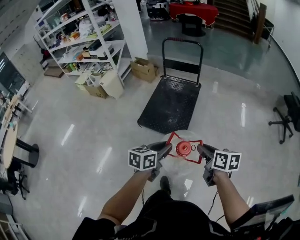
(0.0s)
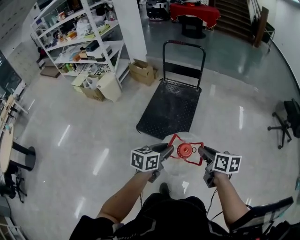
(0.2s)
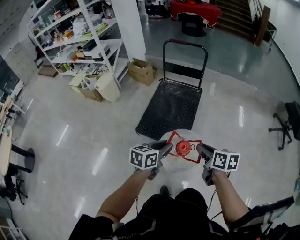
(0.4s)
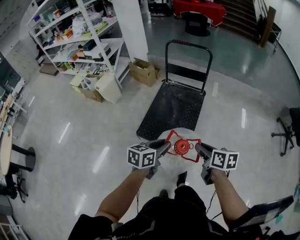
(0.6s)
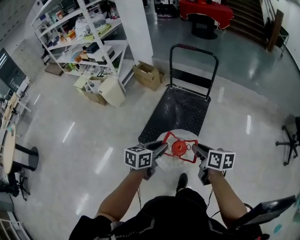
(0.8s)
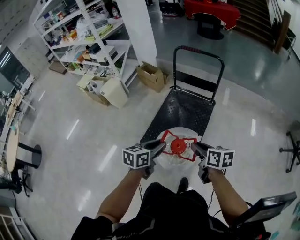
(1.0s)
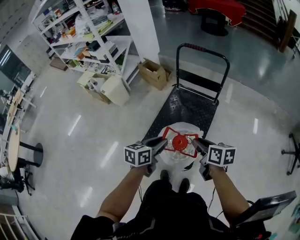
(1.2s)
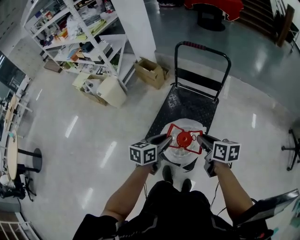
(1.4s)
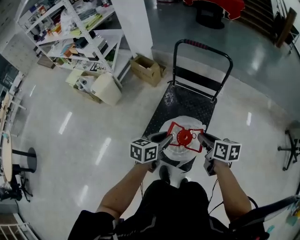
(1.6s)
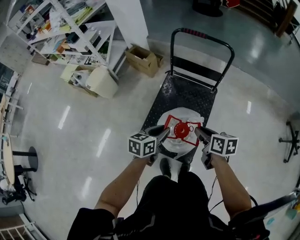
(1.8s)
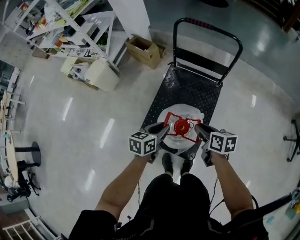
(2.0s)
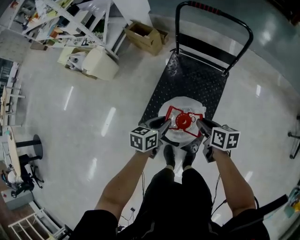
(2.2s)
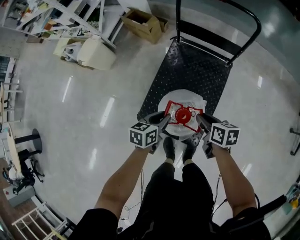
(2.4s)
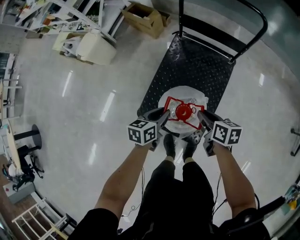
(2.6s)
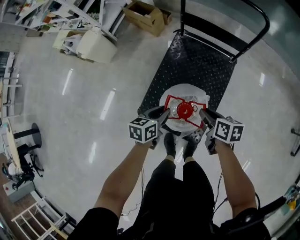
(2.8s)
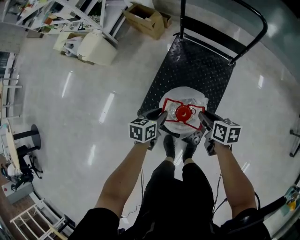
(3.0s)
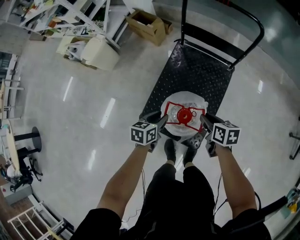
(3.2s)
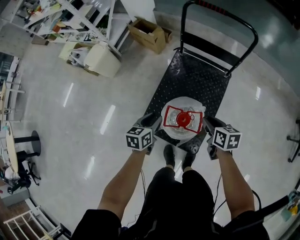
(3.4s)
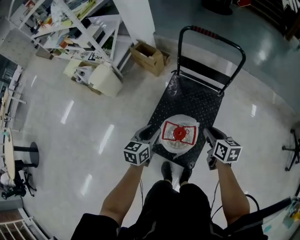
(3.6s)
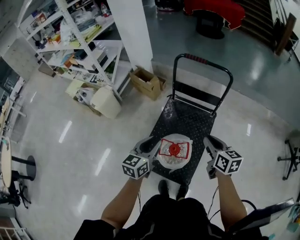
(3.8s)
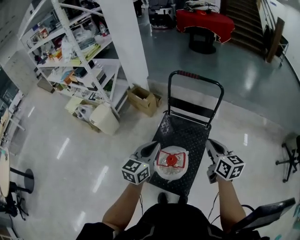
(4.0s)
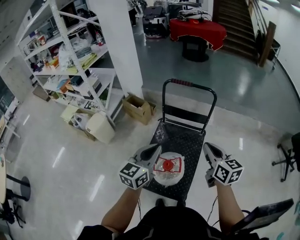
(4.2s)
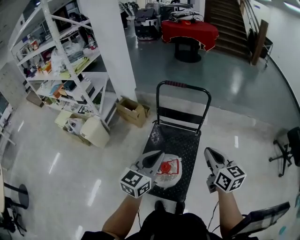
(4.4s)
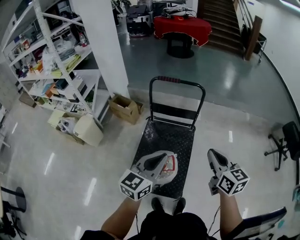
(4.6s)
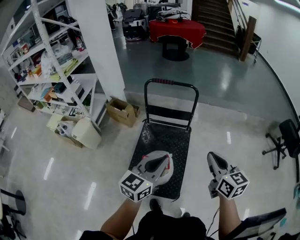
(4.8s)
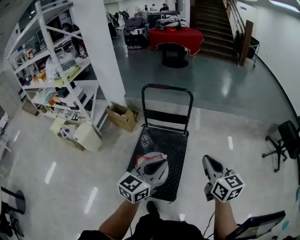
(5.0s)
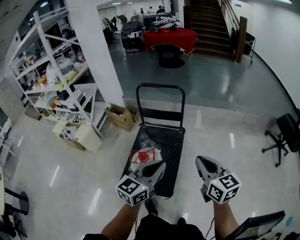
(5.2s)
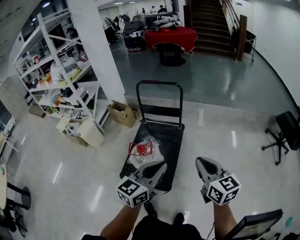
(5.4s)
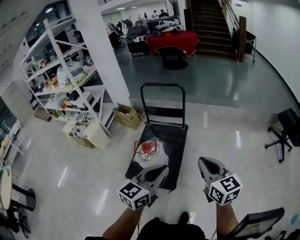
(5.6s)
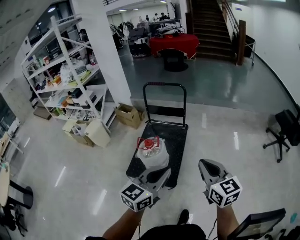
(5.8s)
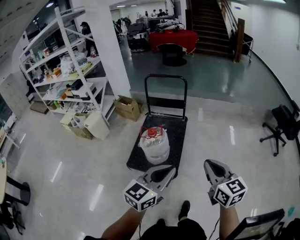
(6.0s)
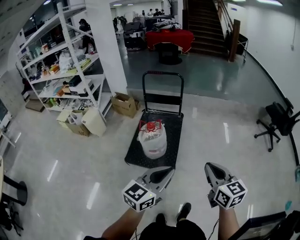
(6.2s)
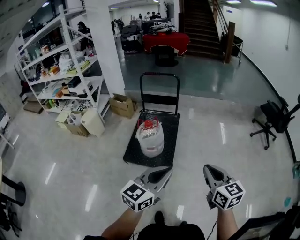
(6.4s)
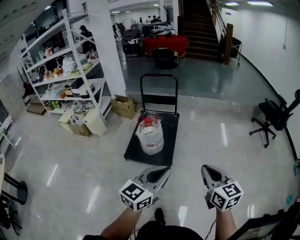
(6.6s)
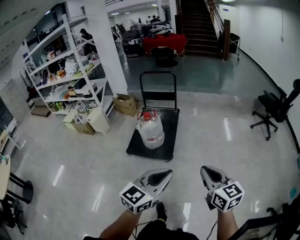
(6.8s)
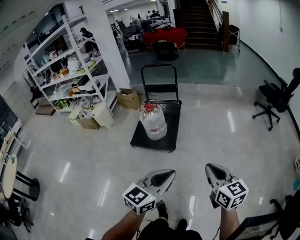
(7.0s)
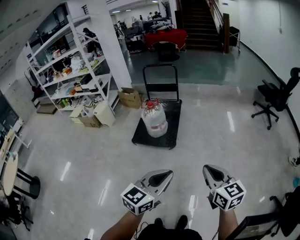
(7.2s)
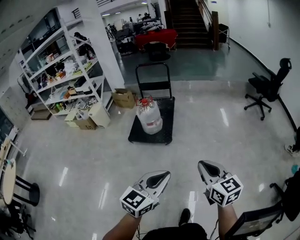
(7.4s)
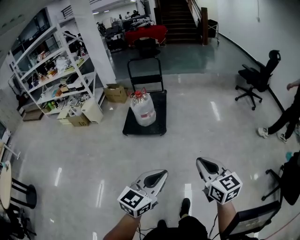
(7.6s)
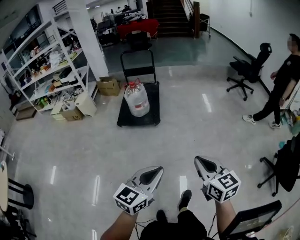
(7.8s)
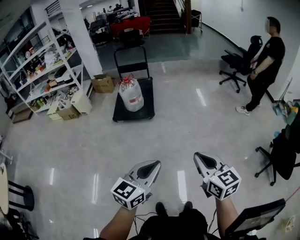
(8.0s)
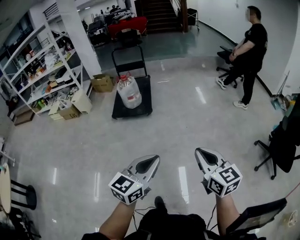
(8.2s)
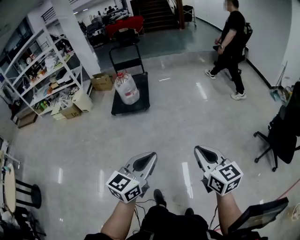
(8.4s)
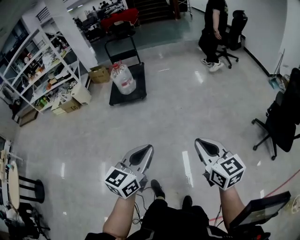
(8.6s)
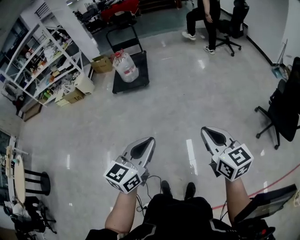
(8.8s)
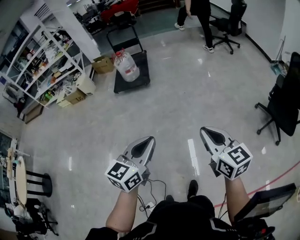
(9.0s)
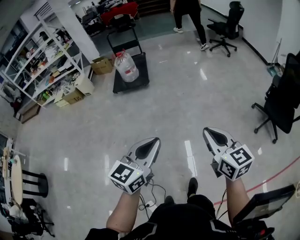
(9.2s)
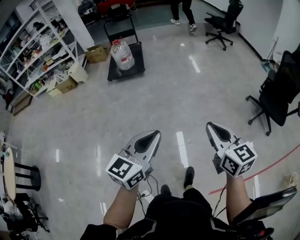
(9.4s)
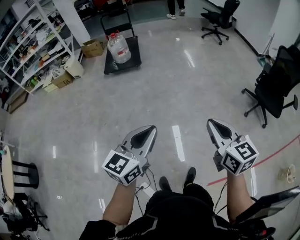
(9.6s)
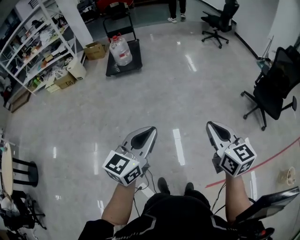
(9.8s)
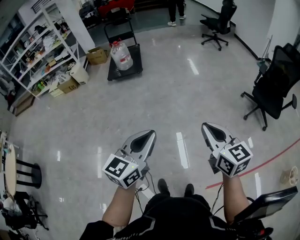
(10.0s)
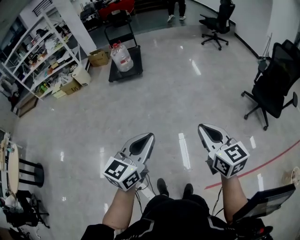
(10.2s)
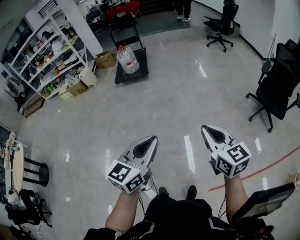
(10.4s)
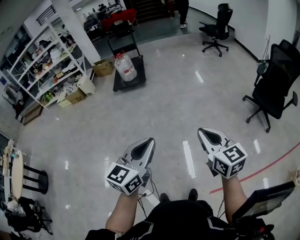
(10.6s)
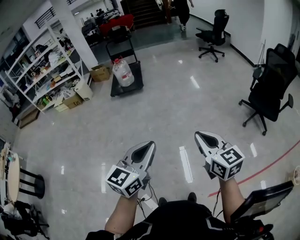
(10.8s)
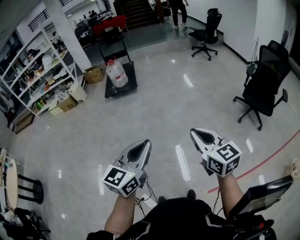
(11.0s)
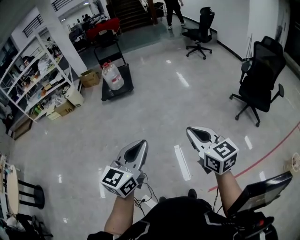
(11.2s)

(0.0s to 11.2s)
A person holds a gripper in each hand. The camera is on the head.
0.0s - 1.6s: The two grippers travel together, forward, roughly 50 cm.
1.6s - 3.2s: The left gripper goes about 20 cm downward. Meanwhile the right gripper is displaced downward and forward by about 25 cm.
3.2s - 4.8s: The grippers both shift upward by some 40 cm. The right gripper tips its fingers upward by approximately 30 degrees, and closes. Meanwhile the left gripper angles its fingers upward, by about 40 degrees, and closes up.
4.8s - 6.4s: The pair of grippers is taken backward, roughly 50 cm.
6.4s - 8.0s: Both grippers are carried backward, roughly 60 cm.
8.0s - 9.6s: Both grippers are carried backward, some 40 cm.
9.6s - 11.2s: The left gripper is displaced backward, to the right and upward by approximately 15 cm. Meanwhile the right gripper heads backward, covering approximately 10 cm.

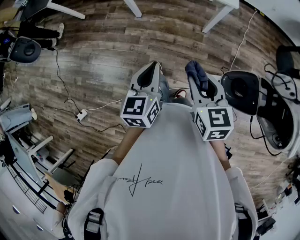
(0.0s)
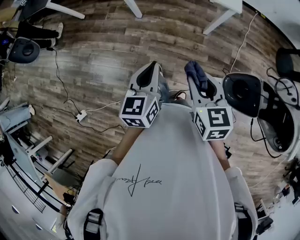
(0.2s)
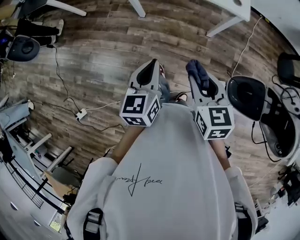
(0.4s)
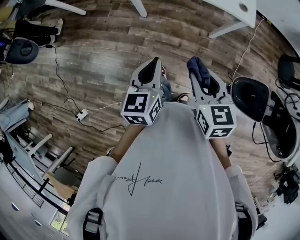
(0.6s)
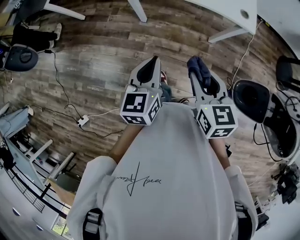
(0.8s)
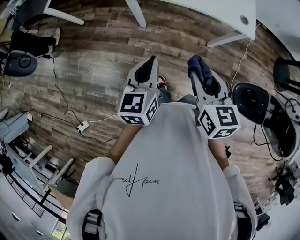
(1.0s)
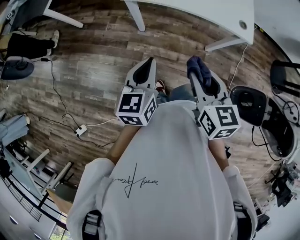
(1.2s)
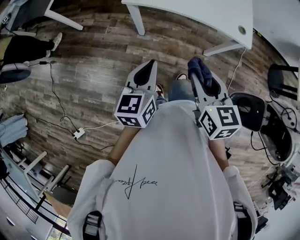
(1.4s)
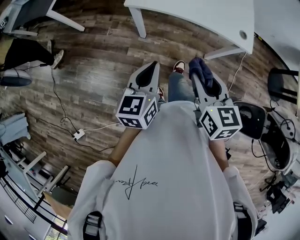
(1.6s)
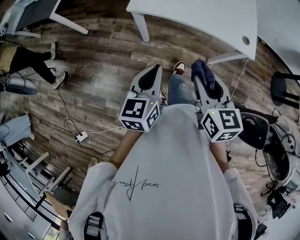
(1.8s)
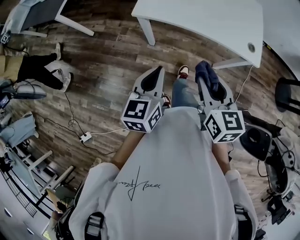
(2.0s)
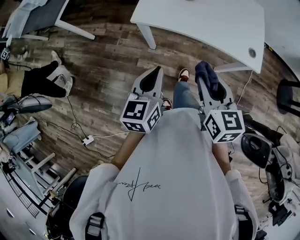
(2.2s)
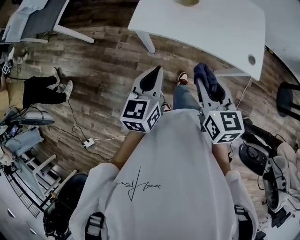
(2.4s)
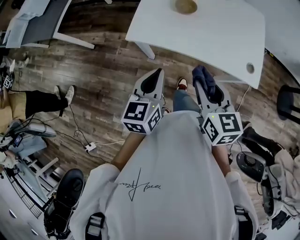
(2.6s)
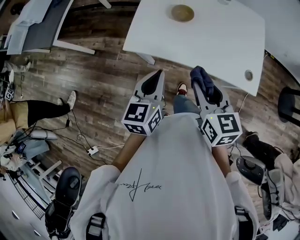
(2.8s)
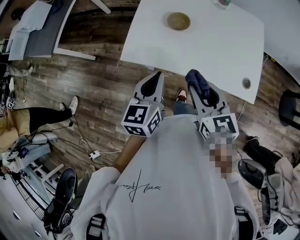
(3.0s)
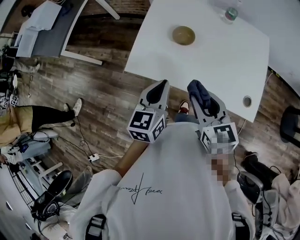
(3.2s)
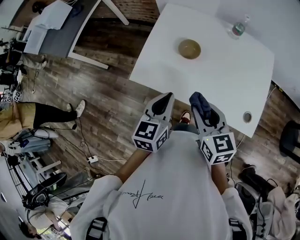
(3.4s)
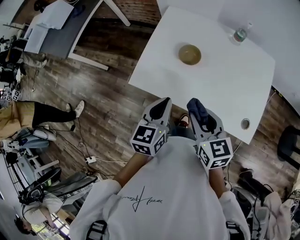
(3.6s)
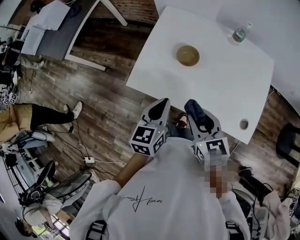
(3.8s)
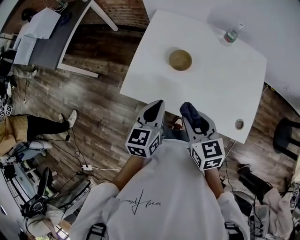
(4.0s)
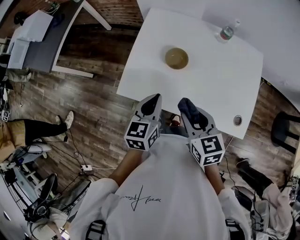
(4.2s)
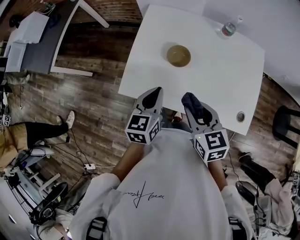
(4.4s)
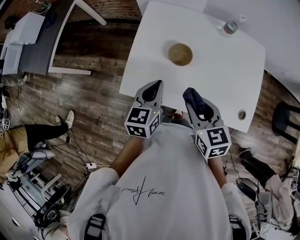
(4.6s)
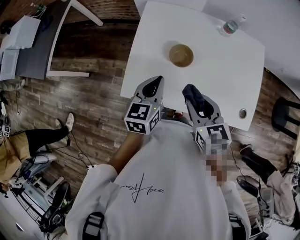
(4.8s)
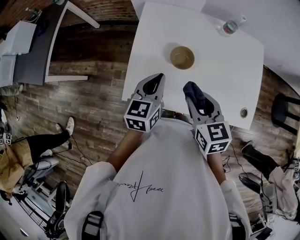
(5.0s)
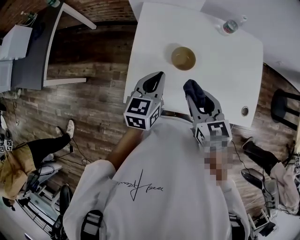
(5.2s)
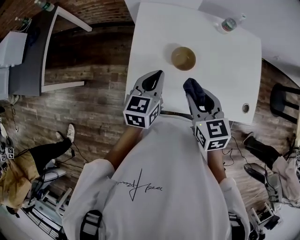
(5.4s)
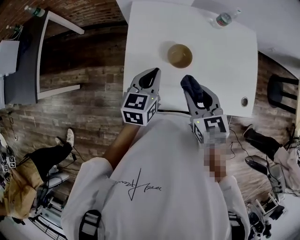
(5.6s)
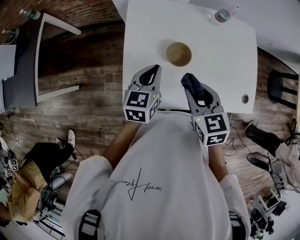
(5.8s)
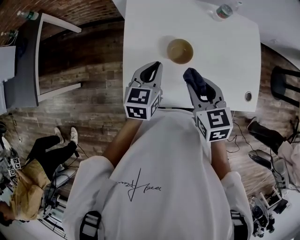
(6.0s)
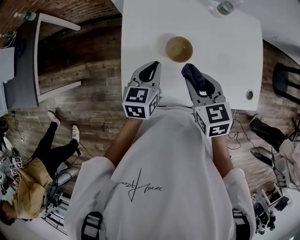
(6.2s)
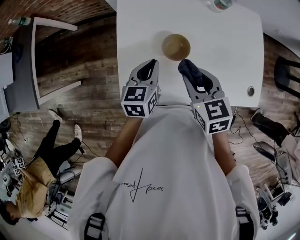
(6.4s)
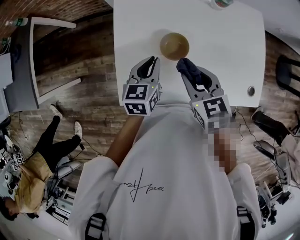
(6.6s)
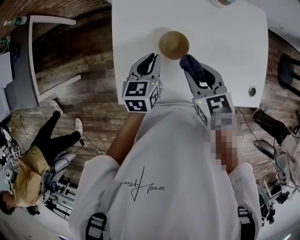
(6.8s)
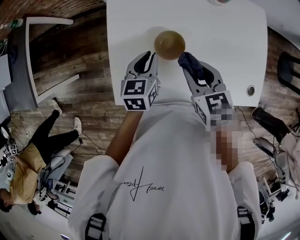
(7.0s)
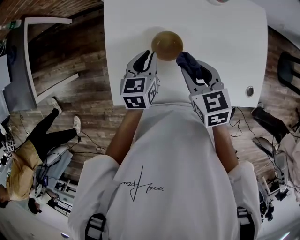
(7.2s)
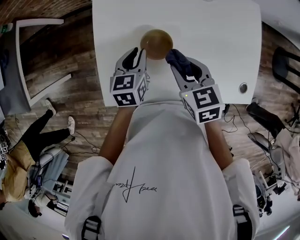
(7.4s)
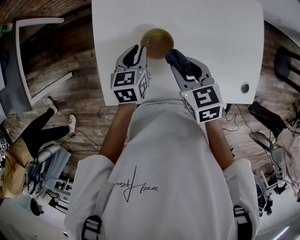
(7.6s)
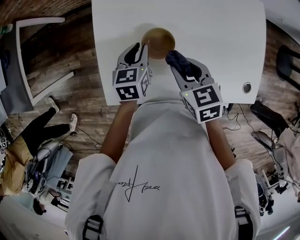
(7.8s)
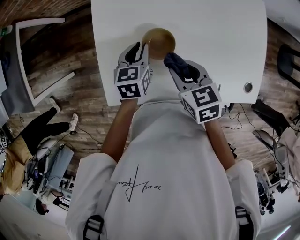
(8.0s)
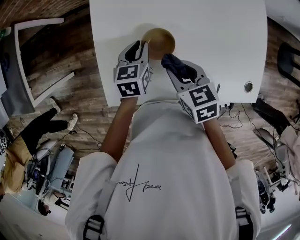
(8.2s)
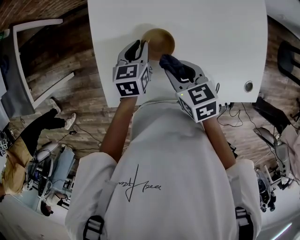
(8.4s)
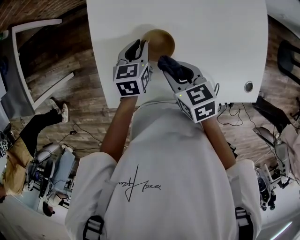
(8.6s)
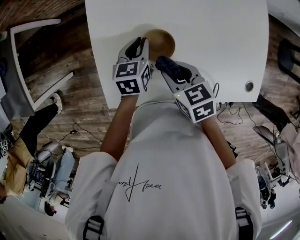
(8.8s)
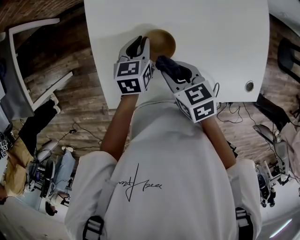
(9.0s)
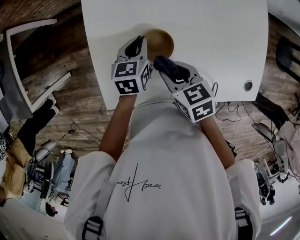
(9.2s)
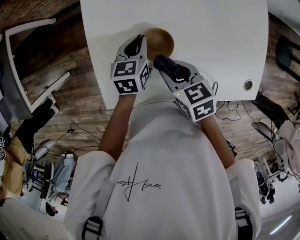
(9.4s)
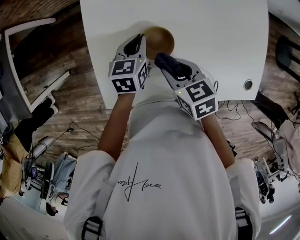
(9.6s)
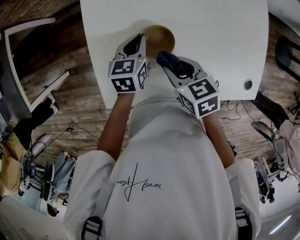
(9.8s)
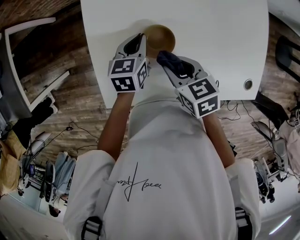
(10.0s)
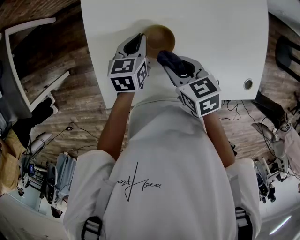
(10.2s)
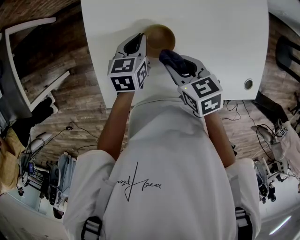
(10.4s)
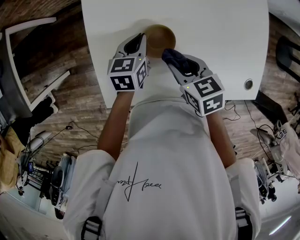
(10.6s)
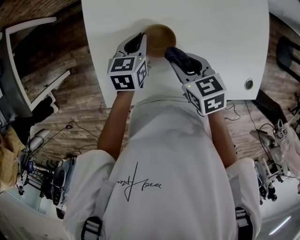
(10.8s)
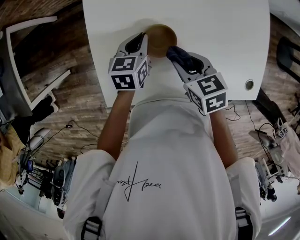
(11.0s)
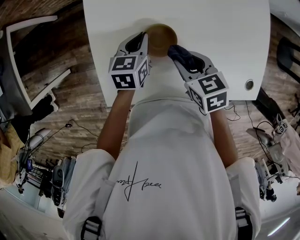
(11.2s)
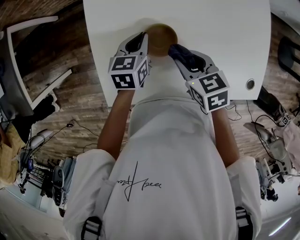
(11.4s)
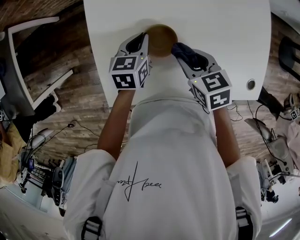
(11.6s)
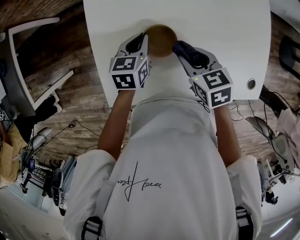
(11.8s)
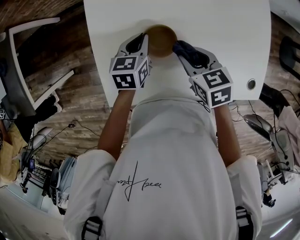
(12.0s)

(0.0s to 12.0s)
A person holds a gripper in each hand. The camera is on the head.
0.0s - 1.6s: The two grippers go approximately 25 cm forward and to the left.
1.6s - 3.0s: Both grippers move forward, some 30 cm.
3.0s - 4.4s: Both grippers travel together forward, some 10 cm.
4.4s - 6.0s: The left gripper travels forward by some 15 cm; the right gripper heads forward and to the left, covering about 10 cm.
6.0s - 7.6s: The two grippers go approximately 10 cm downward and forward.
7.6s - 9.0s: The right gripper changes place by approximately 5 cm.
9.0s - 10.4s: The grippers make only small movements.
10.4s - 12.0s: The right gripper shifts approximately 5 cm to the right.

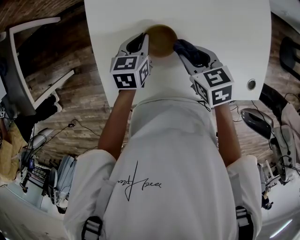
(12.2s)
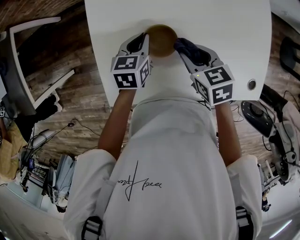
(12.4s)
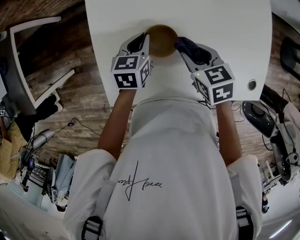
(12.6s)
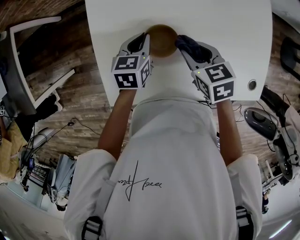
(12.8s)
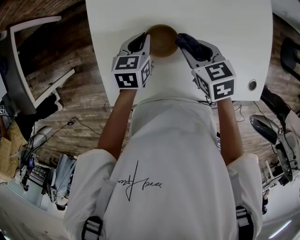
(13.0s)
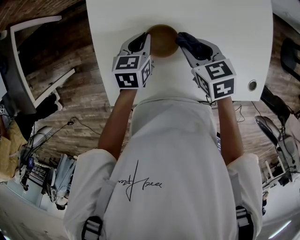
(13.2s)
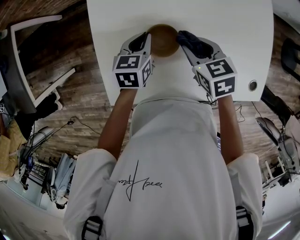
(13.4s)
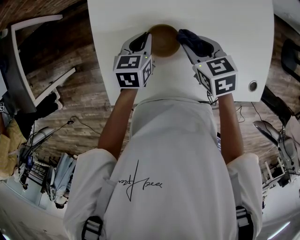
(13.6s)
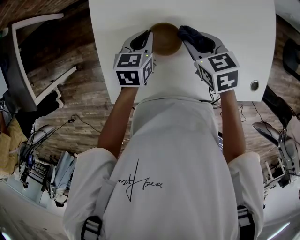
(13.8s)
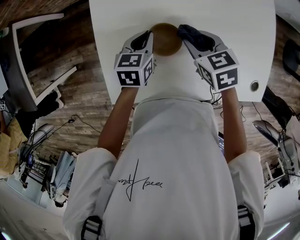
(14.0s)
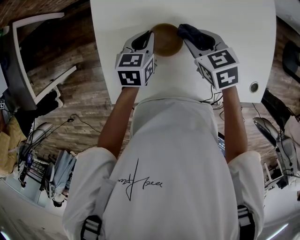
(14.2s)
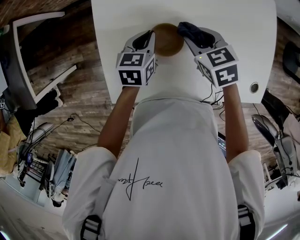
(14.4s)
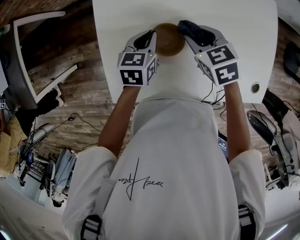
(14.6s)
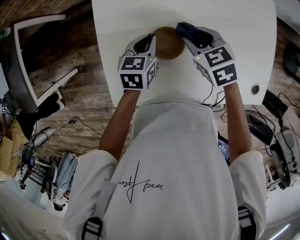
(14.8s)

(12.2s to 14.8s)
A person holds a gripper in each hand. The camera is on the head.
12.2s - 13.4s: The grippers make only small movements.
13.4s - 14.8s: The grippers make only small movements.
